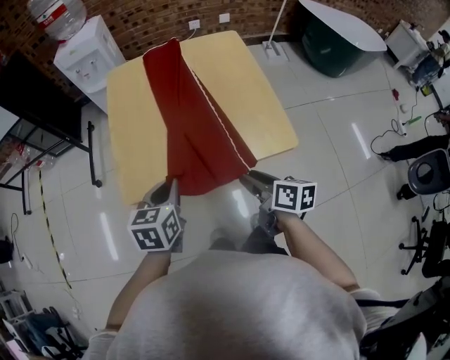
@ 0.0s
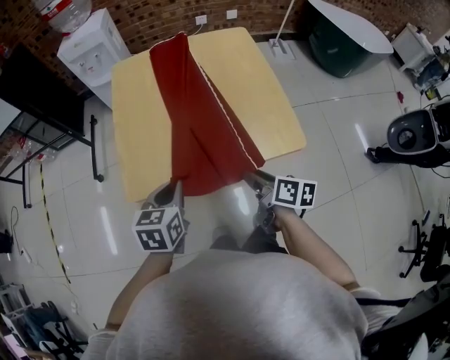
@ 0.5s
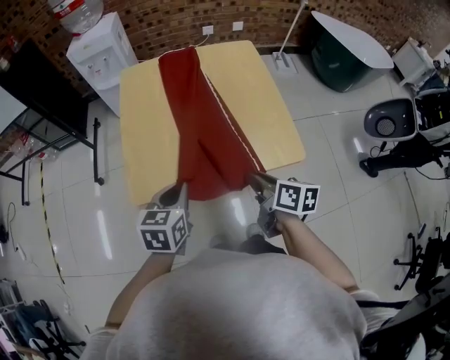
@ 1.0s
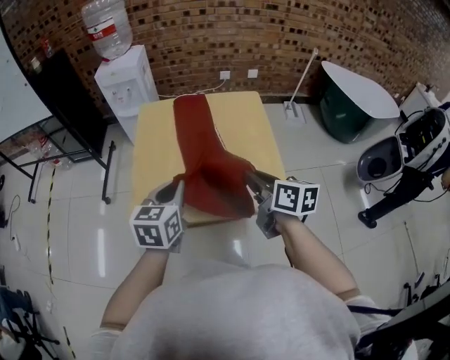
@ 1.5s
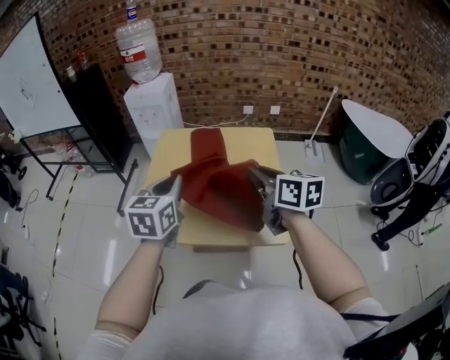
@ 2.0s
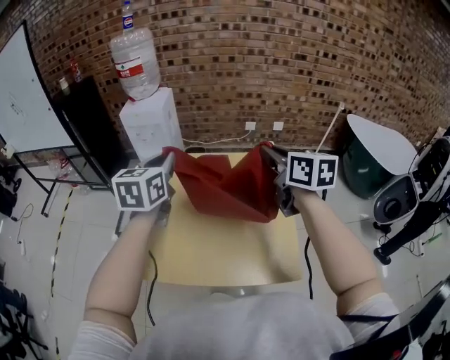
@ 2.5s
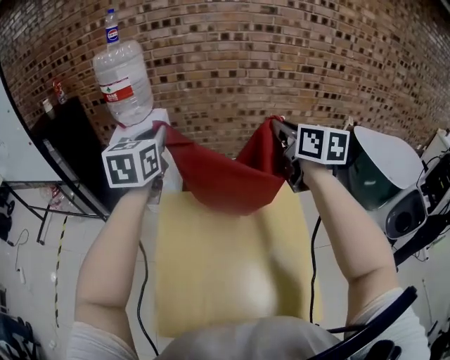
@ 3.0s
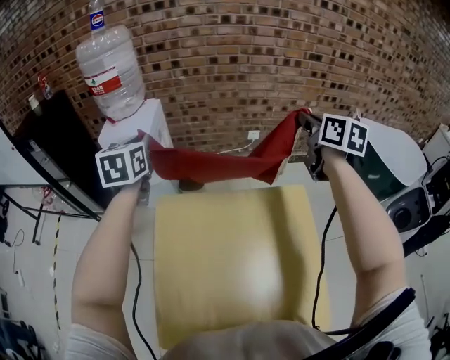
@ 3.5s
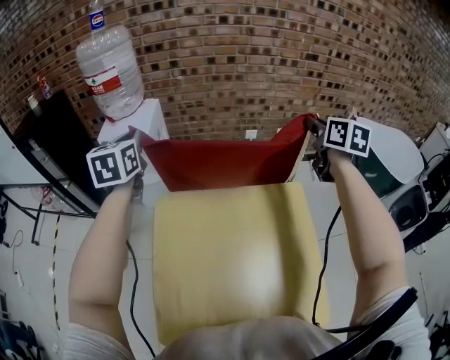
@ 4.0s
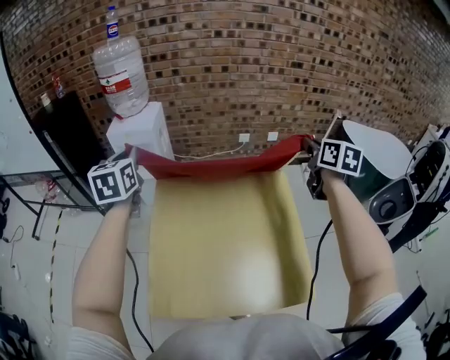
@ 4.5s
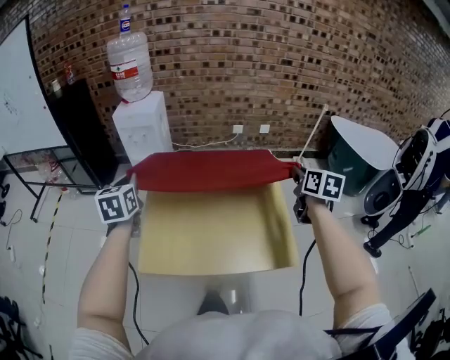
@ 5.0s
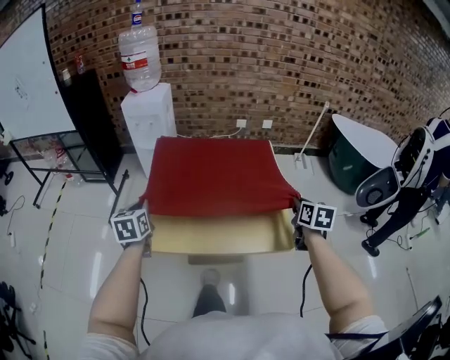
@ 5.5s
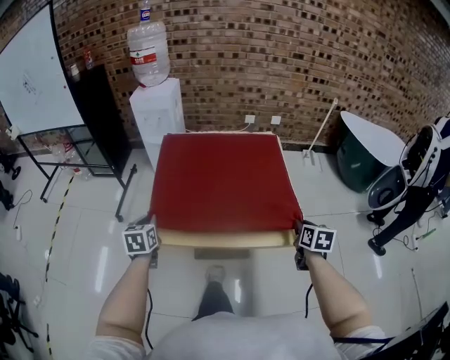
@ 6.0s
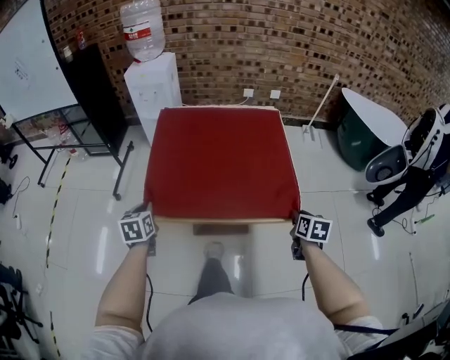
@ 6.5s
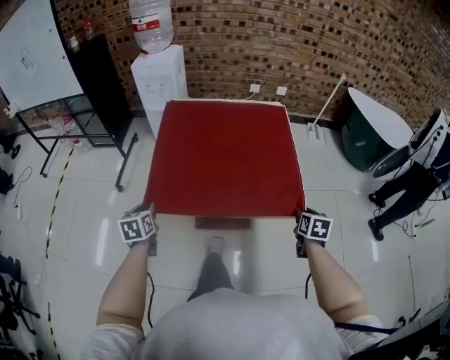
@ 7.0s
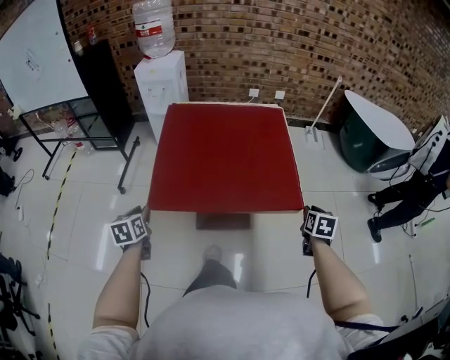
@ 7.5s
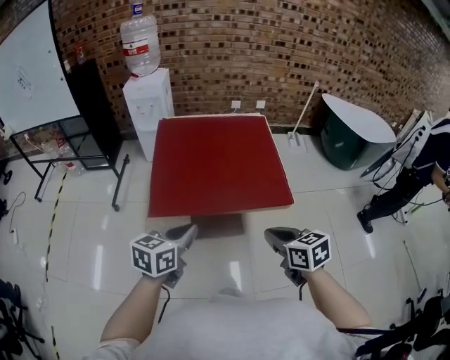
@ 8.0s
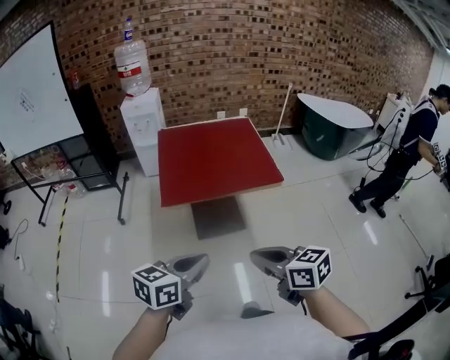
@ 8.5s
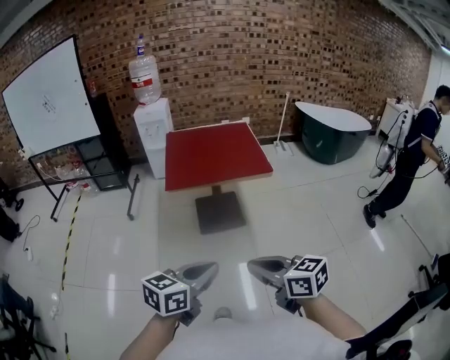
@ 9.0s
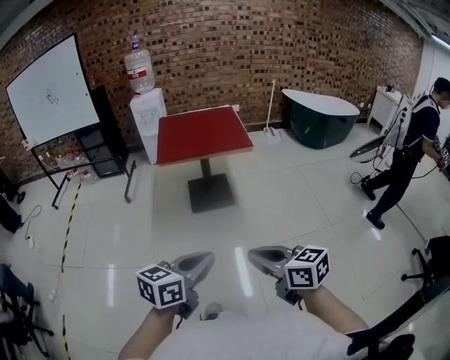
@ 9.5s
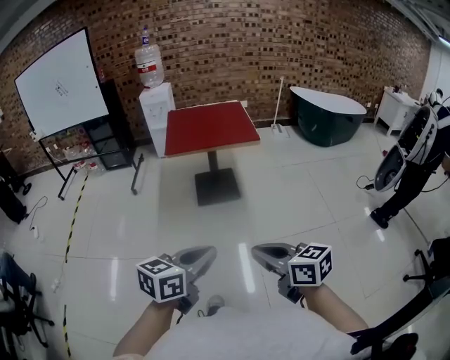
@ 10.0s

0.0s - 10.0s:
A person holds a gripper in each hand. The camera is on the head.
0.0s - 2.0s: The two grippers go some 25 cm upward and forward. The left gripper changes its angle by approximately 20 degrees. Meanwhile the right gripper changes its angle by some 30 degrees, and closes.
2.0s - 4.0s: The two grippers travel together, forward, some 50 cm. The right gripper changes its angle by approximately 30 degrees.
4.0s - 6.0s: Both grippers are carried backward, some 60 cm. Both grippers move downward, about 25 cm. The right gripper turns by roughly 20 degrees.
6.0s - 8.0s: The left gripper shifts about 25 cm backward, to the right and upward, changes its angle by roughly 40 degrees, and opens, then closes once more. Meanwhile the right gripper travels backward and to the left by about 30 cm, and changes its angle by roughly 30 degrees.
8.0s - 10.0s: Both grippers are carried backward, some 60 cm. The right gripper turns by about 20 degrees.

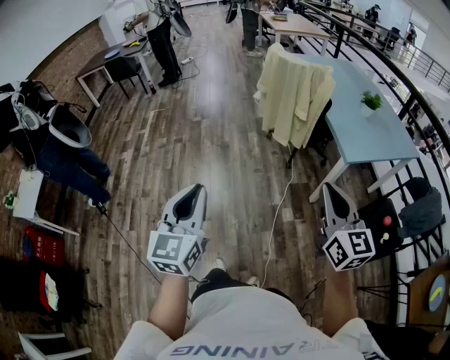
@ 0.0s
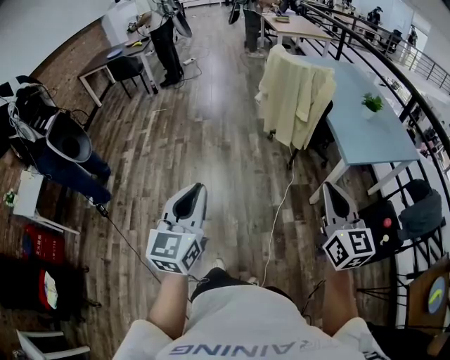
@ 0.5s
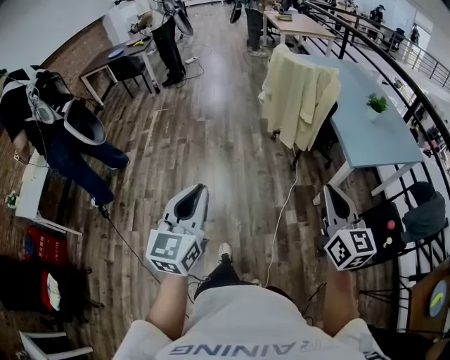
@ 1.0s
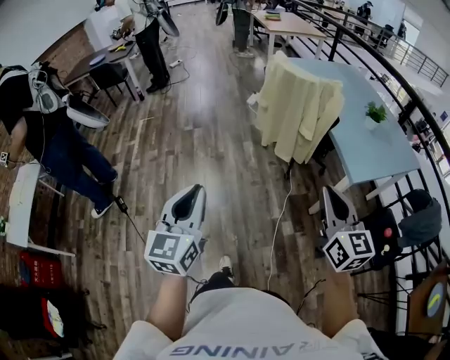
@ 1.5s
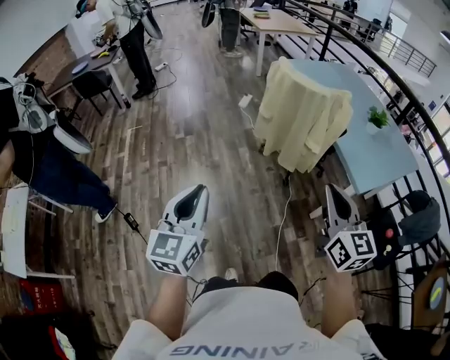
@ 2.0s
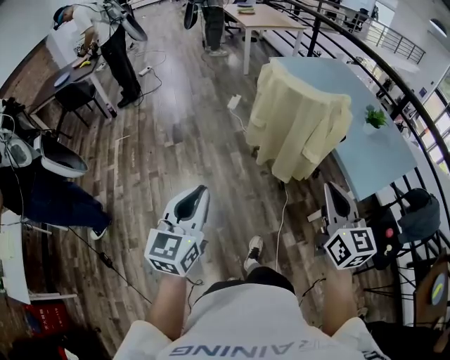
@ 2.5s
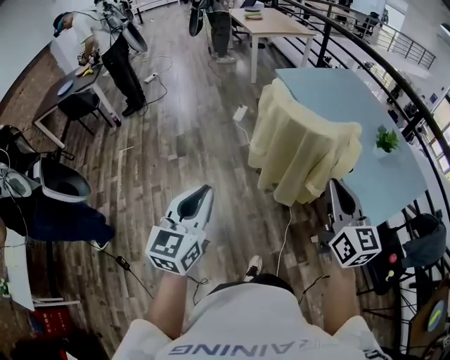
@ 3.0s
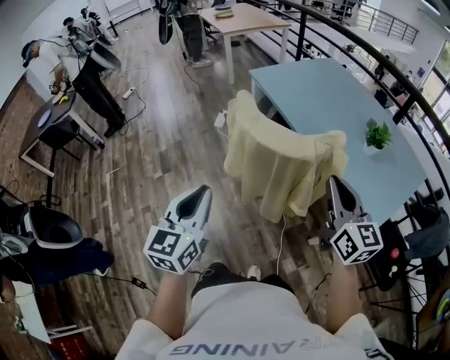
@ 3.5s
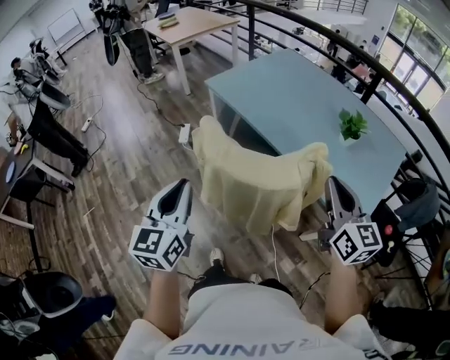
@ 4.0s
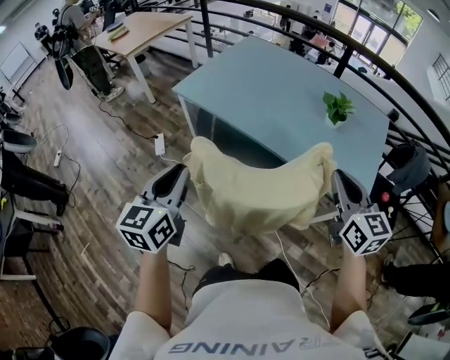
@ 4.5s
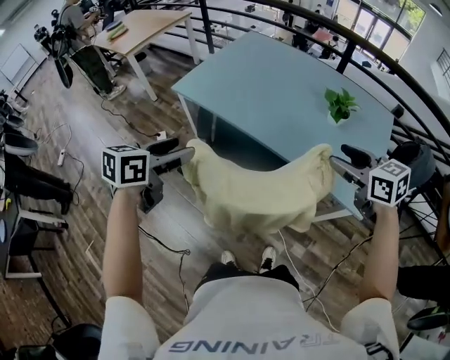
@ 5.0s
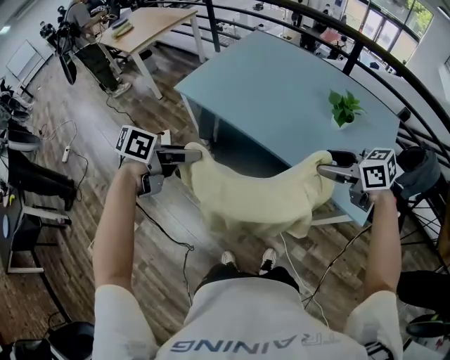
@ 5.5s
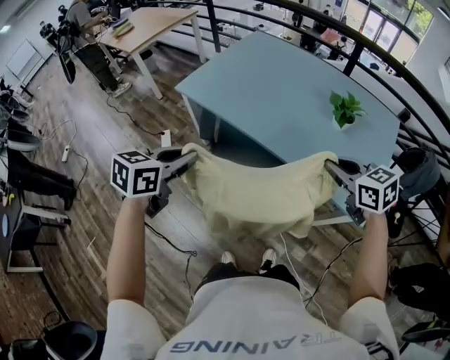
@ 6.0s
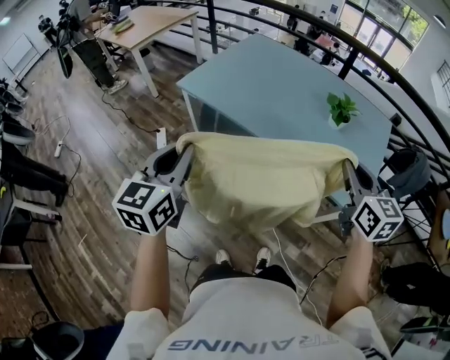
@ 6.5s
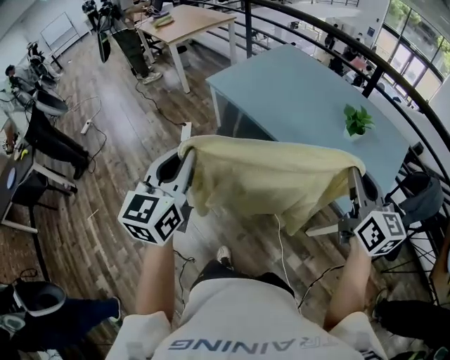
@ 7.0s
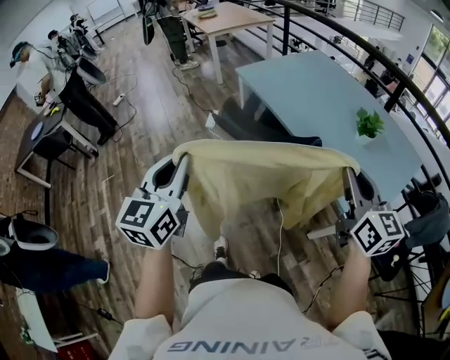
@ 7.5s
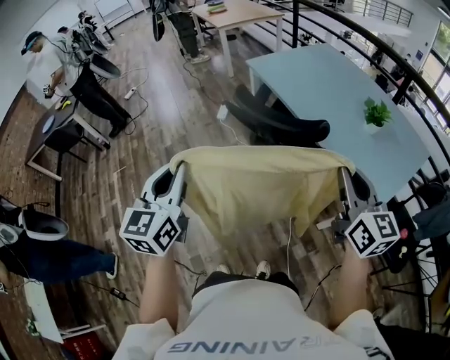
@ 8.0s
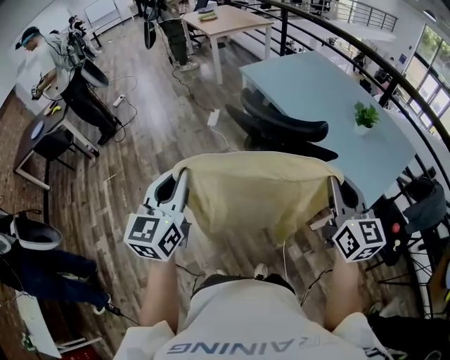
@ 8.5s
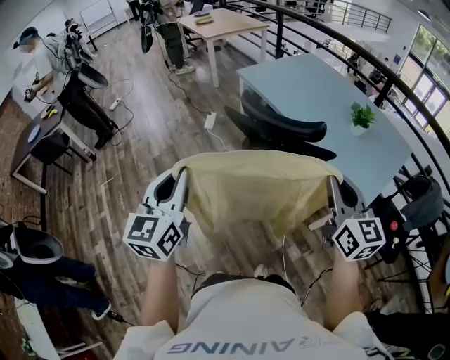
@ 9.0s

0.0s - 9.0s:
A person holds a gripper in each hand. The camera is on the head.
0.0s - 2.0s: The left gripper moves forward, roughly 30 cm. Meanwhile the right gripper travels forward and to the left by about 25 cm.
2.0s - 4.5s: The two grippers travel together, roughly 60 cm. The left gripper rotates roughly 40 degrees. Meanwhile the right gripper rotates about 40 degrees.
4.5s - 7.0s: The left gripper ends up roughly 10 cm from where it was, and opens, then closes again, while the right gripper opens, then closes again.
7.0s - 9.0s: The left gripper moves backward, roughly 25 cm. The right gripper is displaced backward and to the left by about 20 cm.

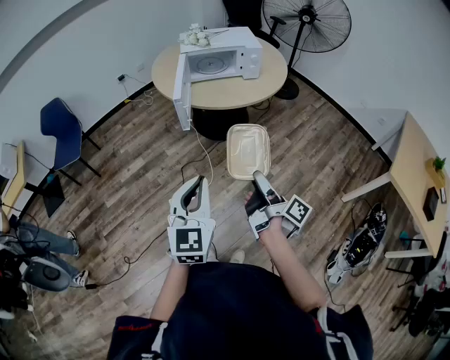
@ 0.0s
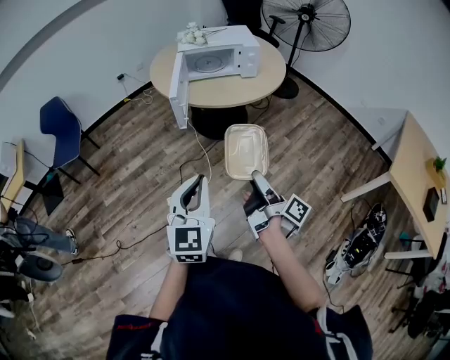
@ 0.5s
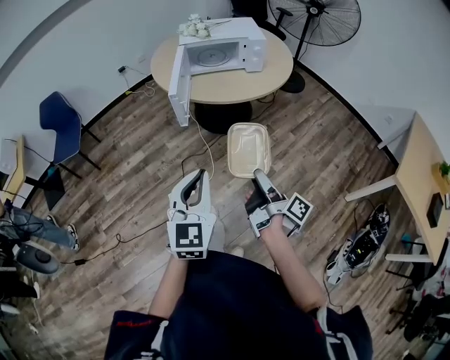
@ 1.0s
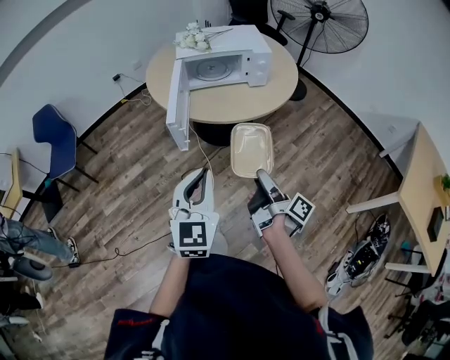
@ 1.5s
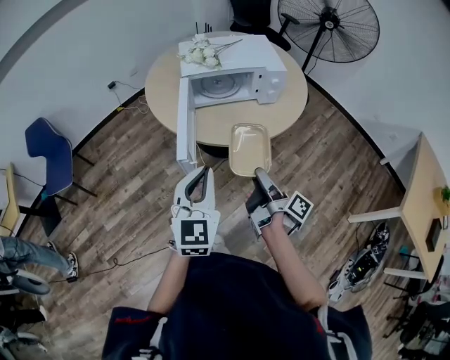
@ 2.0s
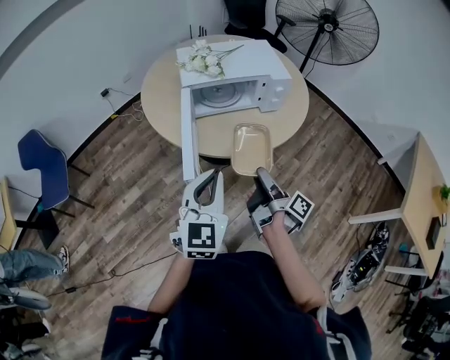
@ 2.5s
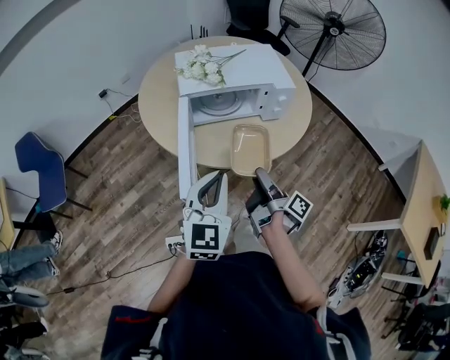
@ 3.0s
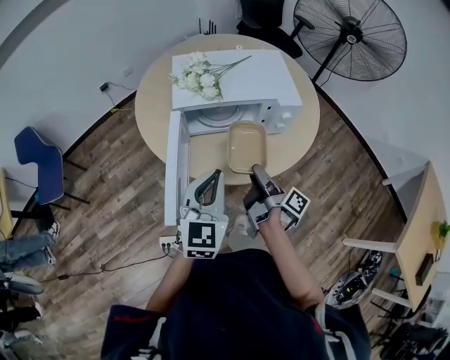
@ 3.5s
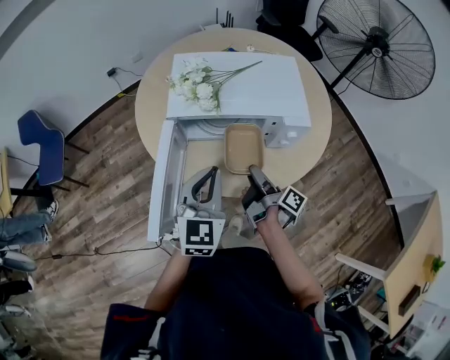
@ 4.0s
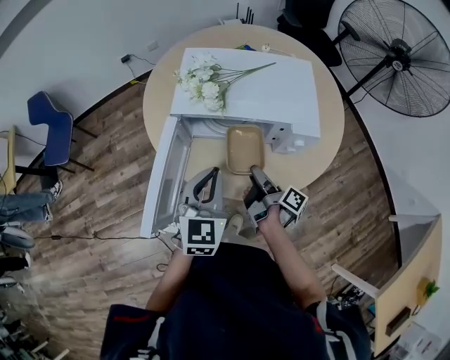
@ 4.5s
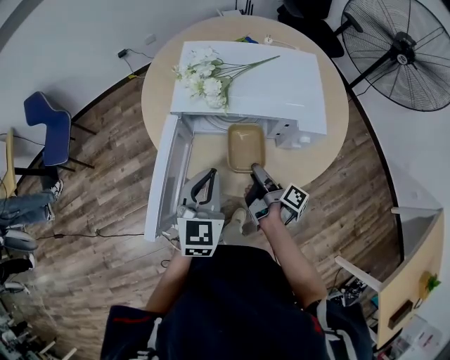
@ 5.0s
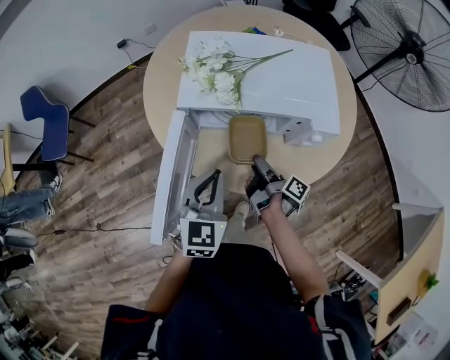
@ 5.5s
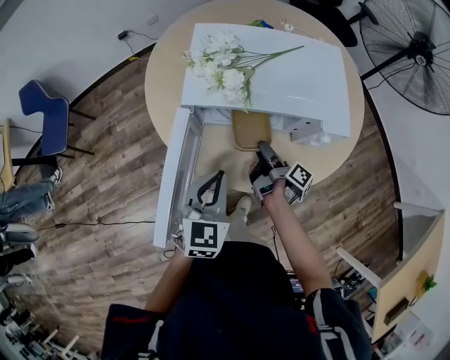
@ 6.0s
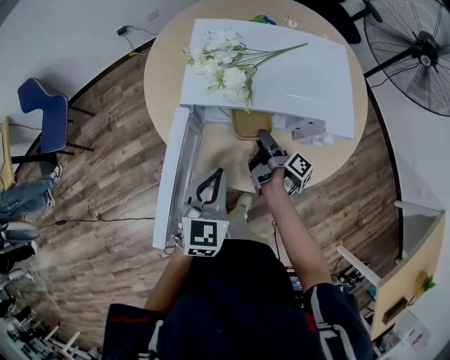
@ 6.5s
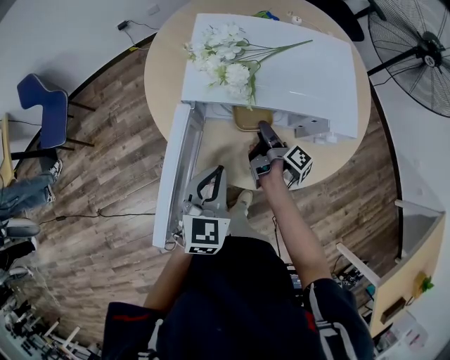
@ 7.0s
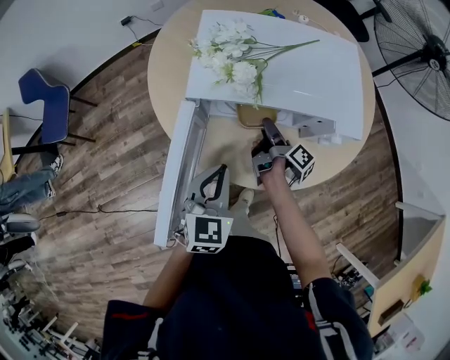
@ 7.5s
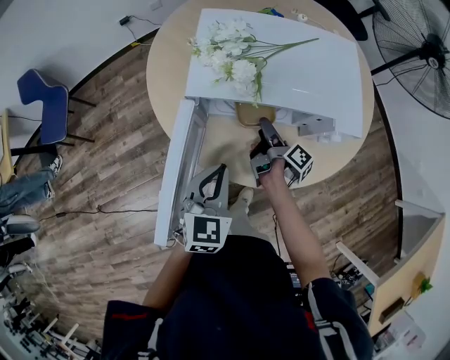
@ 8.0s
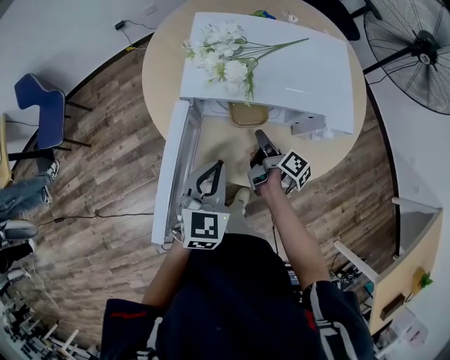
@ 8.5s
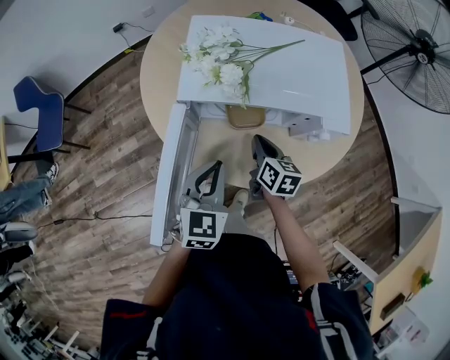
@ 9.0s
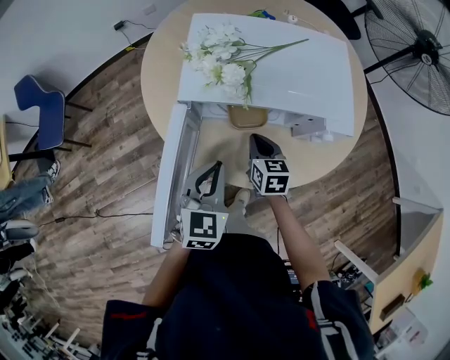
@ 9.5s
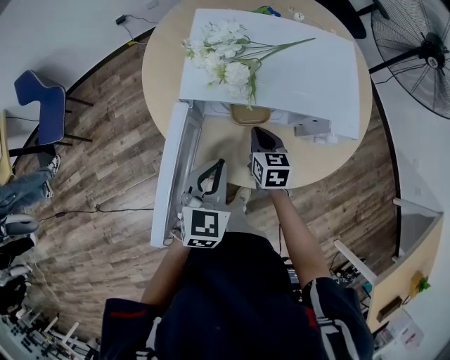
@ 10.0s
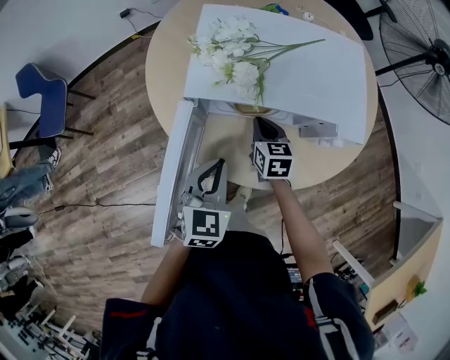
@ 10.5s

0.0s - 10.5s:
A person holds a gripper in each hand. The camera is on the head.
0.0s - 2.0s: The grippers both shift forward by roughly 30 cm.
2.0s - 4.0s: The grippers both shift forward by some 30 cm.
4.0s - 6.5s: The left gripper heads downward, covering approximately 10 cm; the right gripper is displaced forward and downward by about 15 cm.
6.5s - 8.5s: There are only small adjustments of the grippers.
8.5s - 10.5s: The right gripper heads forward, covering about 5 cm, twists approximately 70 degrees counterclockwise, seen from behind, and closes.
